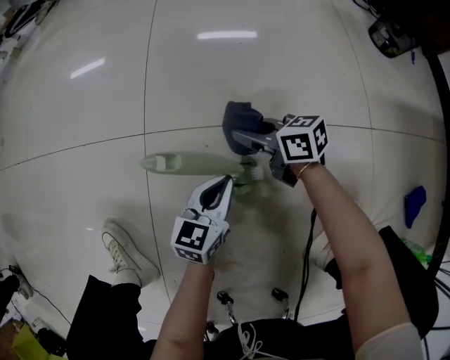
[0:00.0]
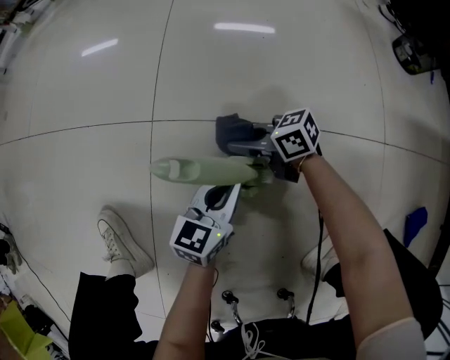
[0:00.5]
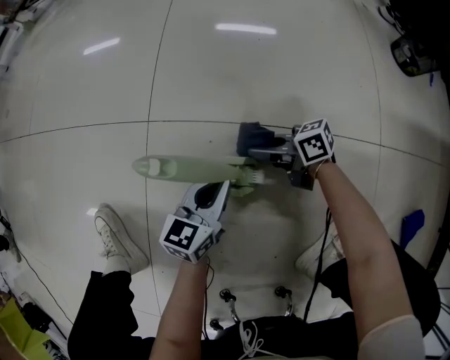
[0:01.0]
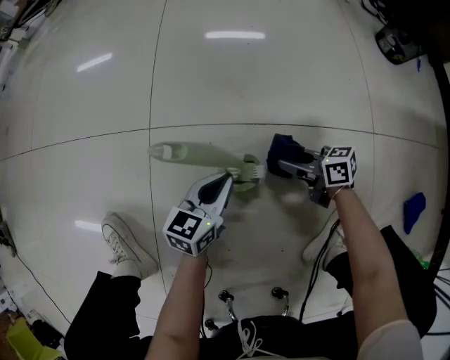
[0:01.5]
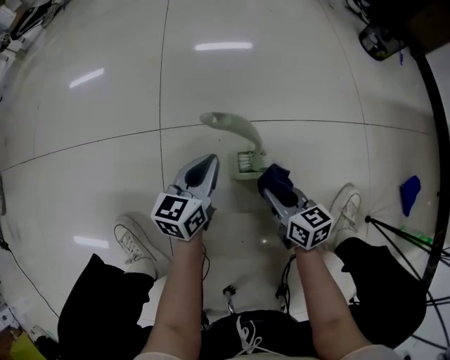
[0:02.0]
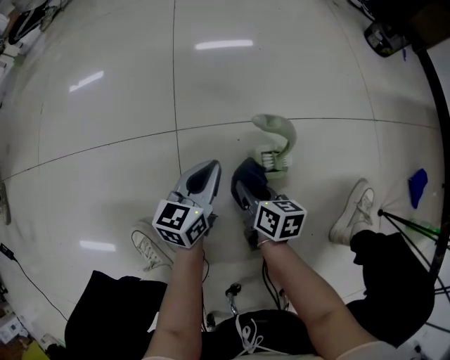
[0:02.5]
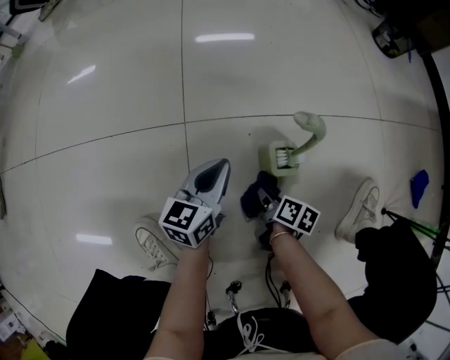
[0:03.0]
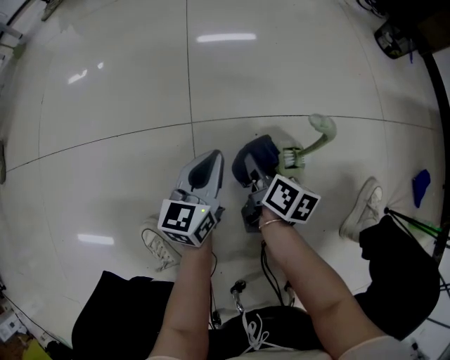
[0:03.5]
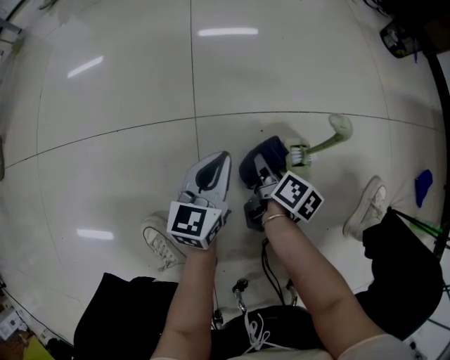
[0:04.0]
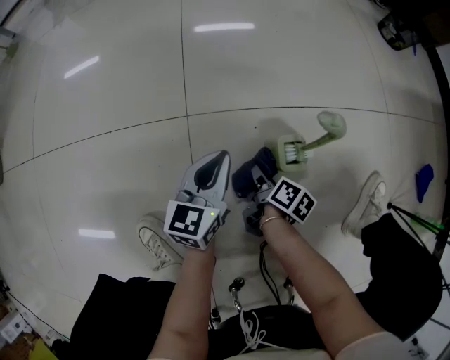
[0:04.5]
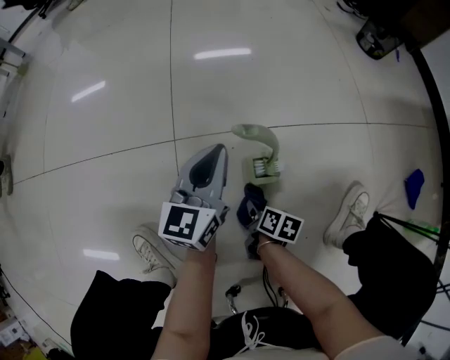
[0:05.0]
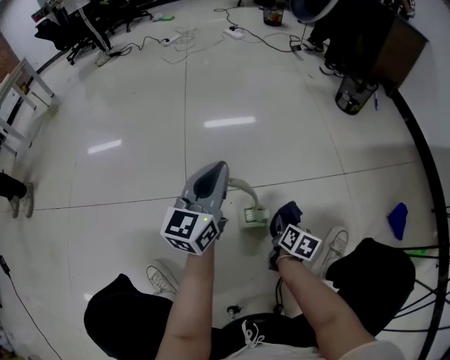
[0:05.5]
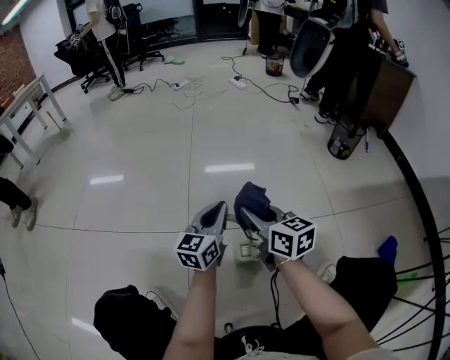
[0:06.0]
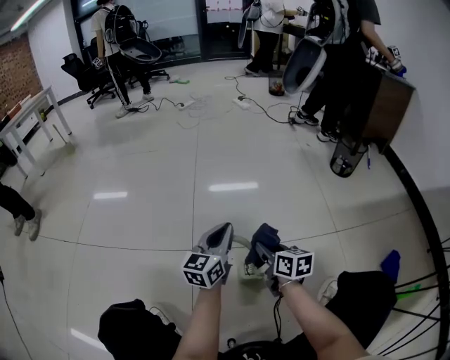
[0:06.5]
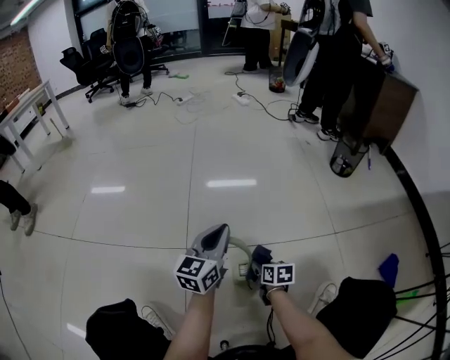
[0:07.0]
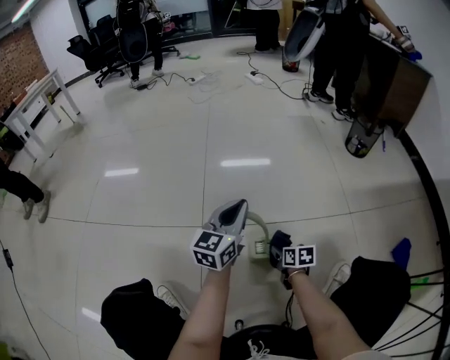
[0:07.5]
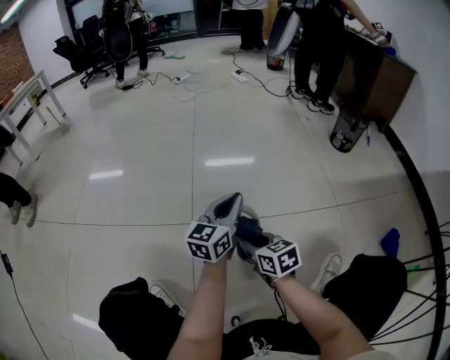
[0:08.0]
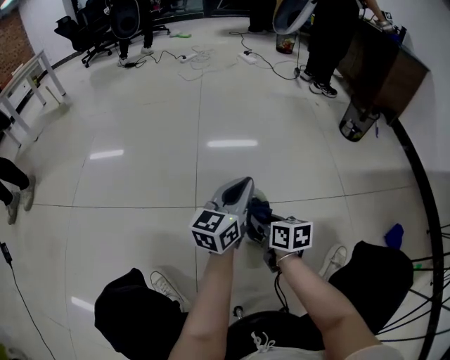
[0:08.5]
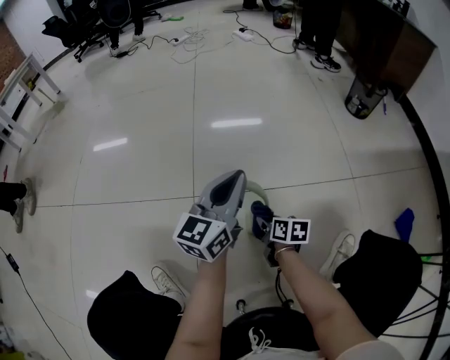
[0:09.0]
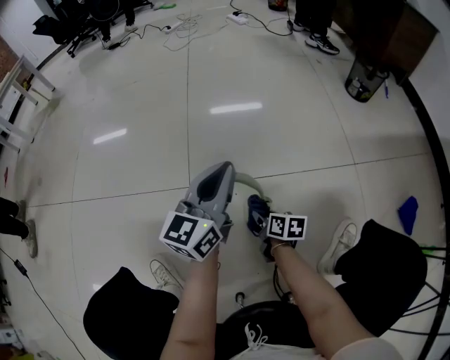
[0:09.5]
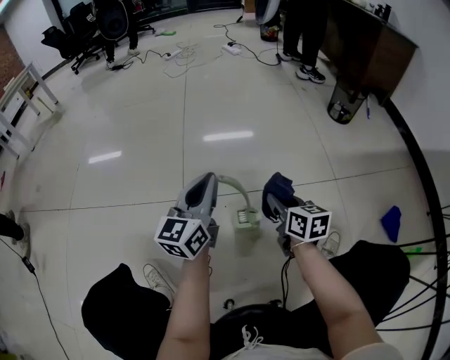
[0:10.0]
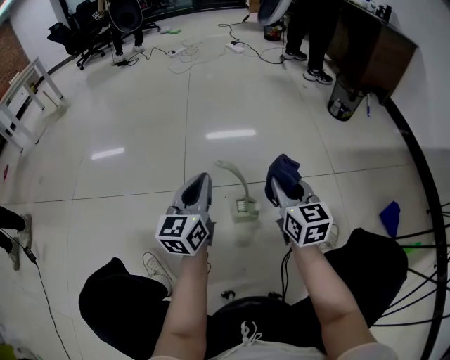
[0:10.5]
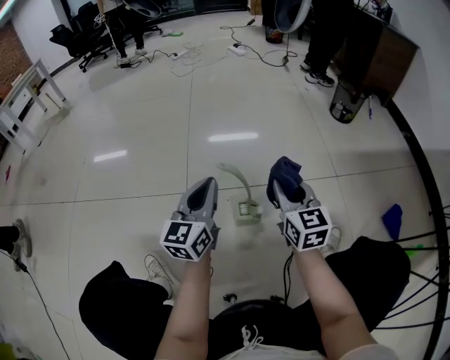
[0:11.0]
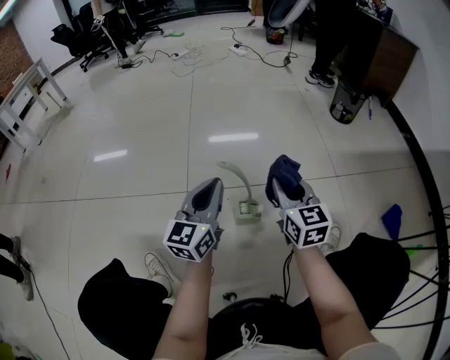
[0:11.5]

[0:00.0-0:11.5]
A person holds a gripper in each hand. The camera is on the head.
0.0 to 2.0 s: The right gripper ends up roughly 20 cm from where it was, and rotates roughly 30 degrees. Meanwhile the left gripper shifts by some 10 cm.
2.0 to 4.0 s: The left gripper travels to the left by roughly 10 cm, while the right gripper goes left and right, roughly 15 cm each way, reversing 2 times, and rotates around the line of its fingers by approximately 50 degrees, clockwise from behind.
4.0 to 6.0 s: The left gripper is displaced upward and to the right by about 25 cm. Meanwhile the right gripper is displaced upward by approximately 35 cm, and rotates around the line of its fingers by some 50 degrees, counterclockwise from behind.
6.0 to 7.5 s: The right gripper shifts some 30 cm downward, and tilts its fingers approximately 30 degrees downward.
7.5 to 9.5 s: The right gripper goes about 5 cm to the left, and moves approximately 15 cm upward and comes back.
9.5 to 11.5 s: The right gripper heads upward, covering about 25 cm, and twists some 40 degrees counterclockwise, seen from behind. Meanwhile the left gripper heads backward, covering about 10 cm.

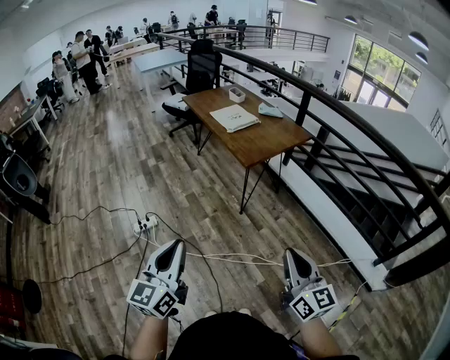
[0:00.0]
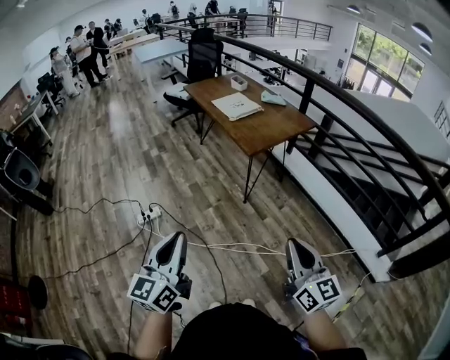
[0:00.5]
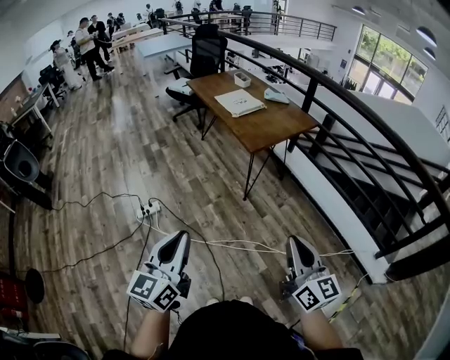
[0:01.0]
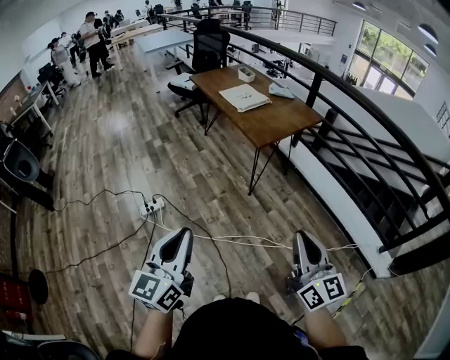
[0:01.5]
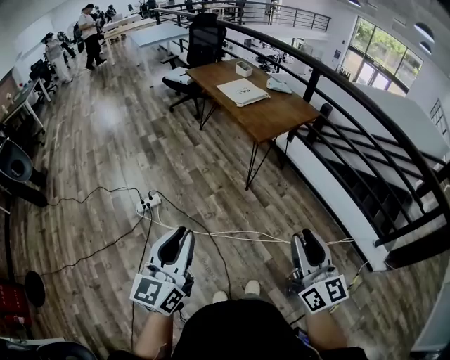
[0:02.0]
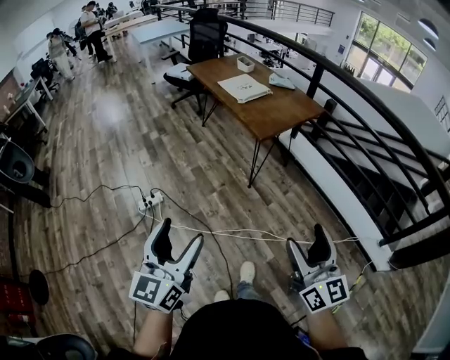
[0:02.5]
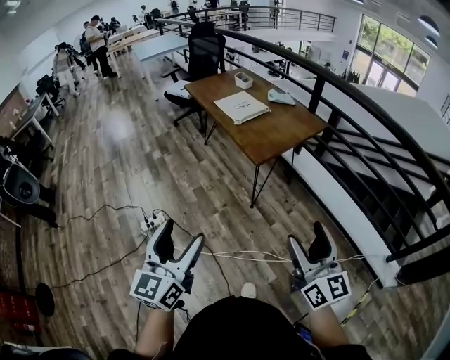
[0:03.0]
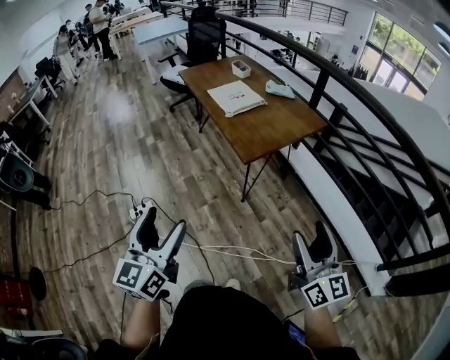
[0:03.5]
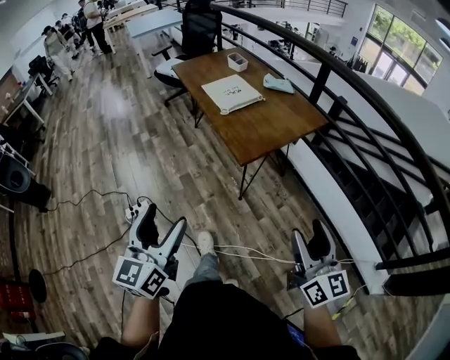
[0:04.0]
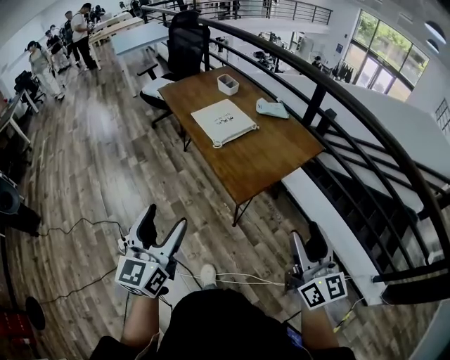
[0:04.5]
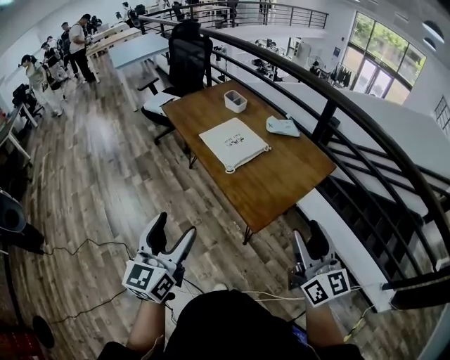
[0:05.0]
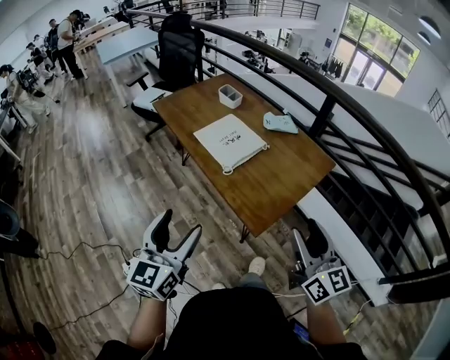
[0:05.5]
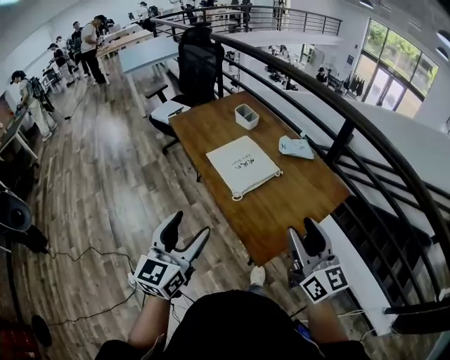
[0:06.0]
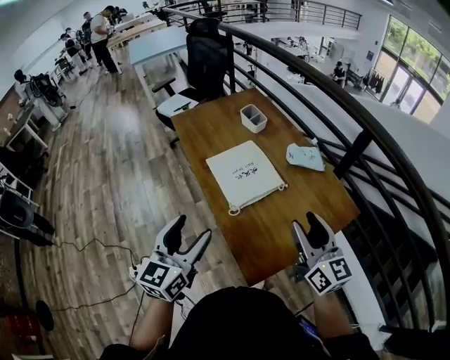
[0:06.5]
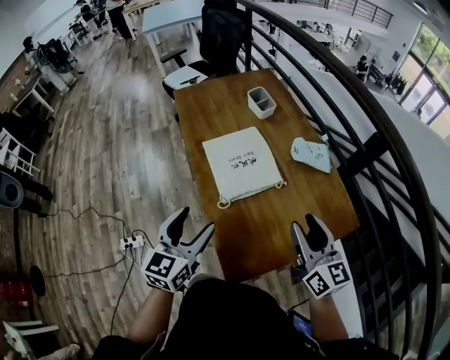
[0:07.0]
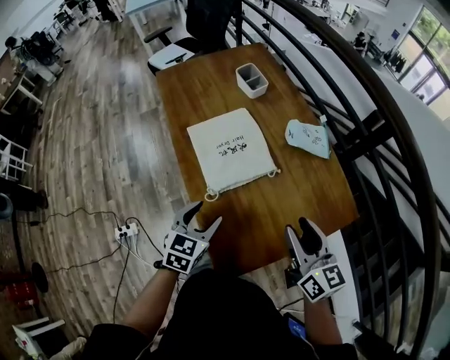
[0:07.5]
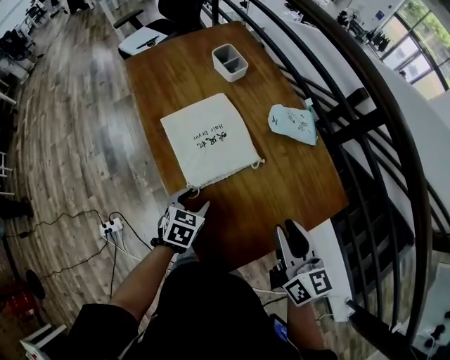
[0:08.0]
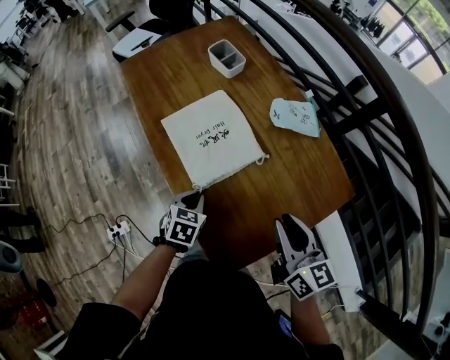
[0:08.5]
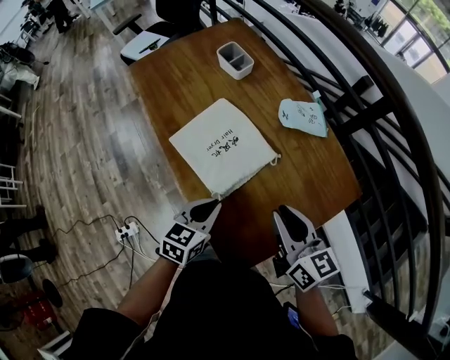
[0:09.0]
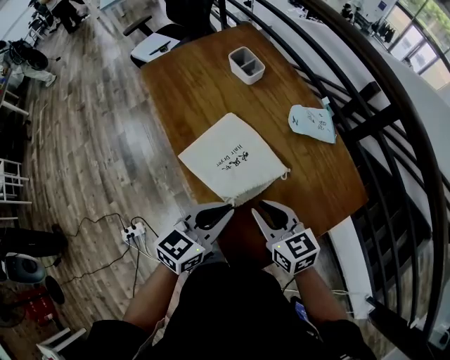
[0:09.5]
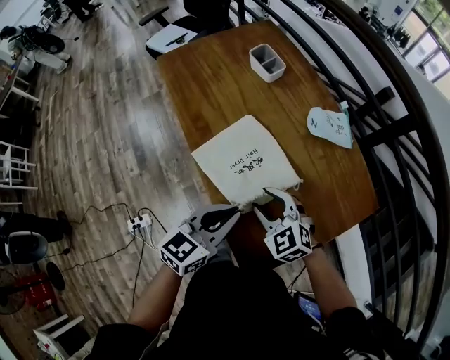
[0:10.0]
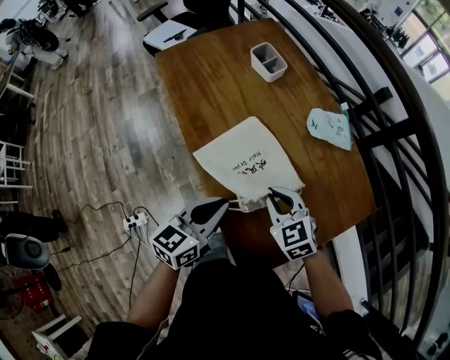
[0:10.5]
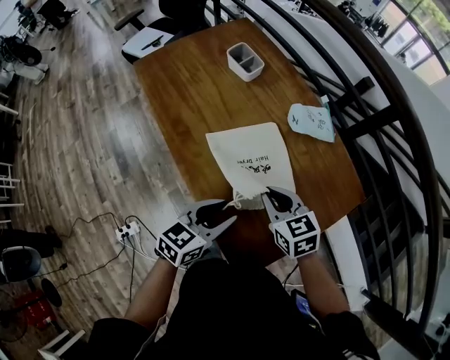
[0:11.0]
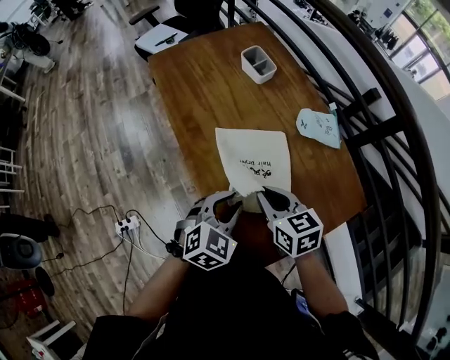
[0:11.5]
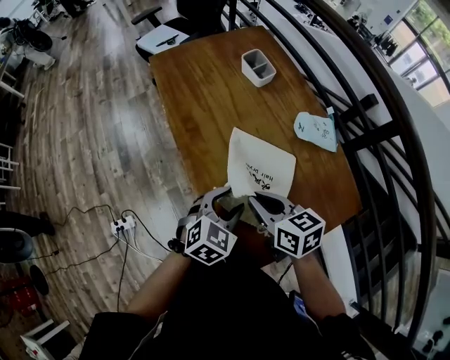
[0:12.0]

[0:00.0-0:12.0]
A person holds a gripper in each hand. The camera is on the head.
0.0 to 2.0 s: The two grippers go about 5 cm to the left.
2.0 to 4.0 s: The right gripper travels forward and to the right by about 30 cm, and opens, while the left gripper travels forward by roughly 25 cm, and opens its fingers.
4.0 to 6.0 s: Both grippers travel together forward, about 35 cm.
6.0 to 8.0 s: The right gripper heads forward, downward and to the right, covering approximately 25 cm, and swivels approximately 20 degrees; the left gripper goes roughly 40 cm downward, forward and to the right, and tips its fingers downward by roughly 50 degrees.
8.0 to 10.0 s: The left gripper travels upward by approximately 15 cm, angles its fingers upward, by roughly 30 degrees, and closes up, while the right gripper heads to the left and downward, covering approximately 20 cm, and rolls counterclockwise, seen from behind, by roughly 50 degrees.
10.0 to 12.0 s: The left gripper is displaced downward by some 5 cm, swivels some 30 degrees, and opens up. The right gripper travels upward by about 5 cm, twists about 50 degrees clockwise, seen from behind, and closes.

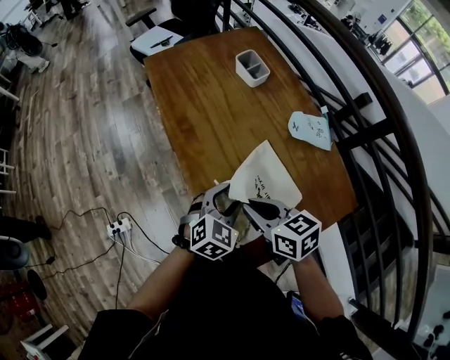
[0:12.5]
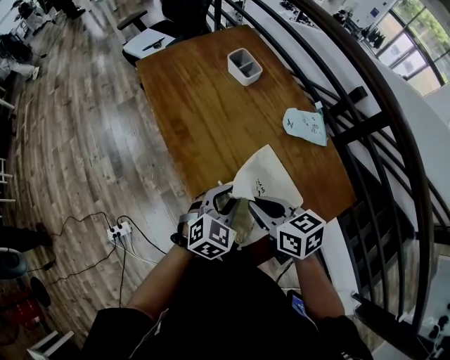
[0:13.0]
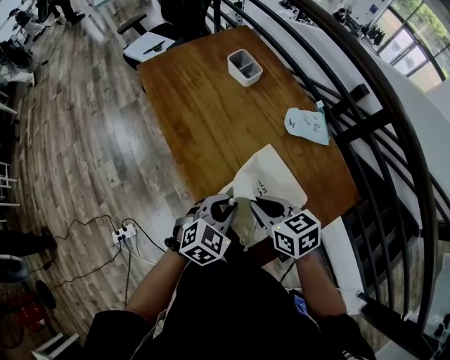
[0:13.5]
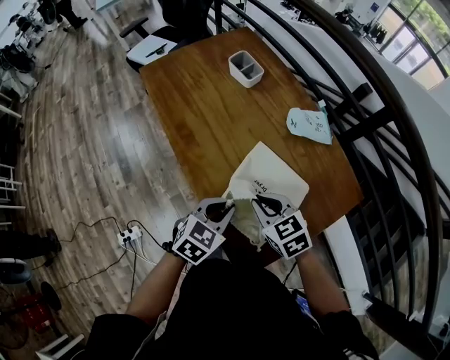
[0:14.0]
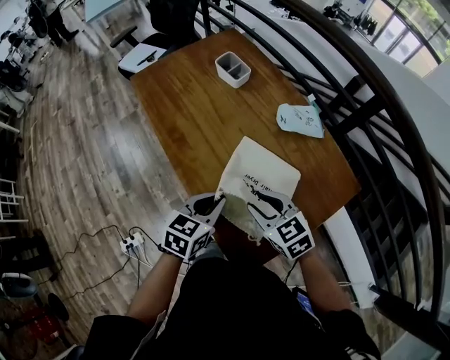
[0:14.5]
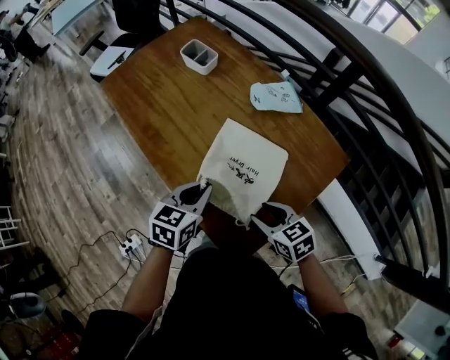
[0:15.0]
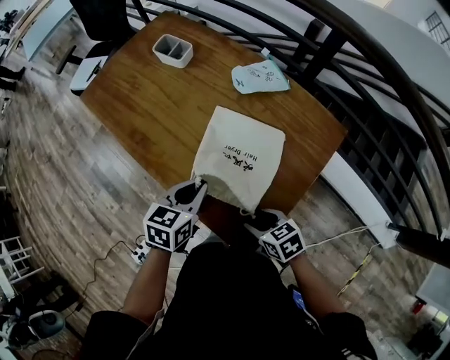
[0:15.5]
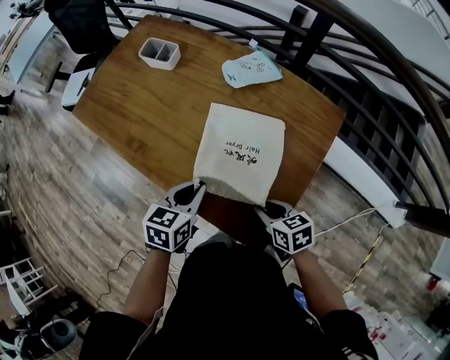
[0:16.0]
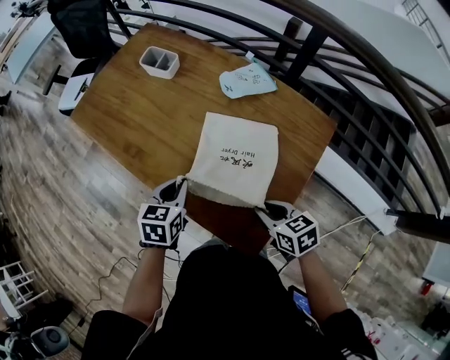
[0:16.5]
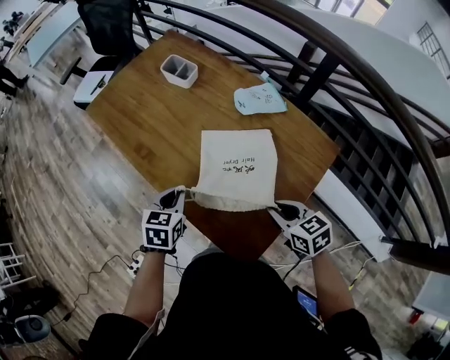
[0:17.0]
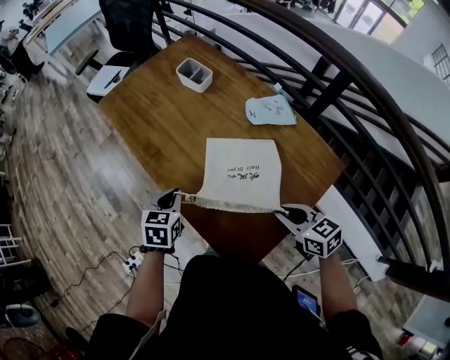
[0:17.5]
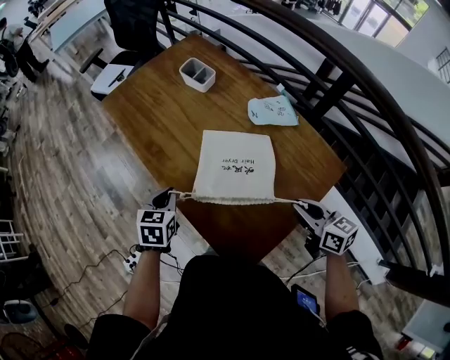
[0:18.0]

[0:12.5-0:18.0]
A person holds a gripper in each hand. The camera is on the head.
12.5 to 14.5 s: The right gripper swivels about 20 degrees. The left gripper swivels roughly 30 degrees, and closes its fingers.
14.5 to 16.0 s: The right gripper moves backward, downward and to the right, about 15 cm, and twists some 40 degrees clockwise, seen from behind.
16.0 to 18.0 s: The left gripper goes approximately 10 cm to the left, and rotates some 30 degrees. Meanwhile the right gripper is displaced to the right, upward and forward by approximately 20 cm, and changes its angle by approximately 30 degrees.
